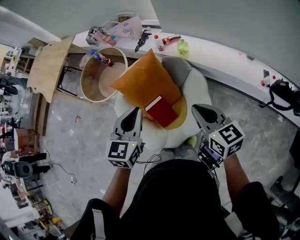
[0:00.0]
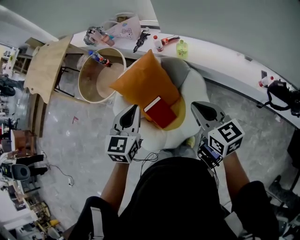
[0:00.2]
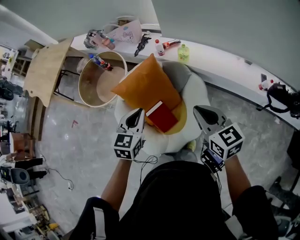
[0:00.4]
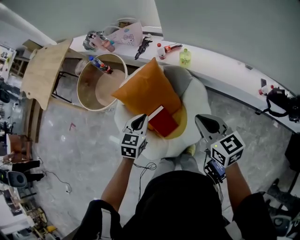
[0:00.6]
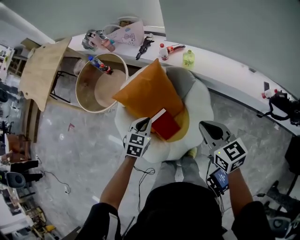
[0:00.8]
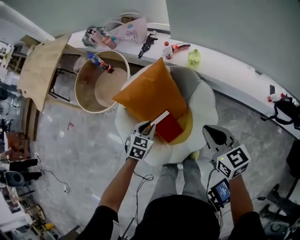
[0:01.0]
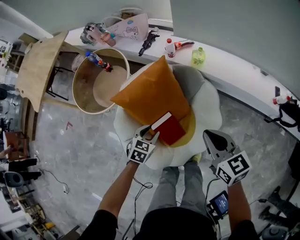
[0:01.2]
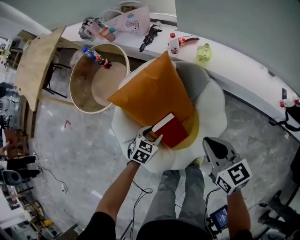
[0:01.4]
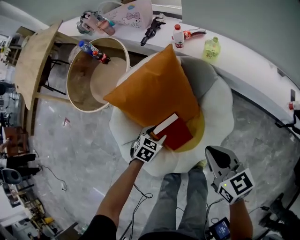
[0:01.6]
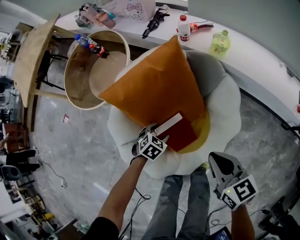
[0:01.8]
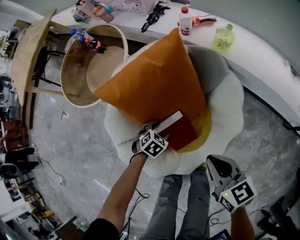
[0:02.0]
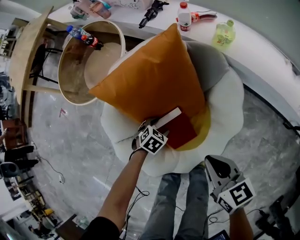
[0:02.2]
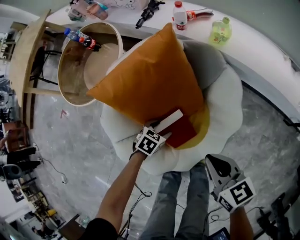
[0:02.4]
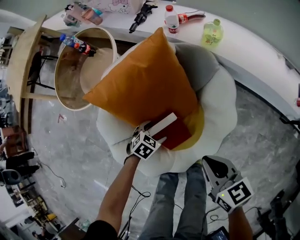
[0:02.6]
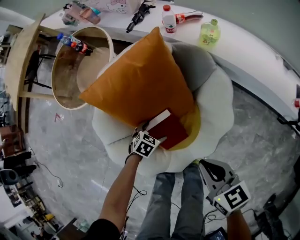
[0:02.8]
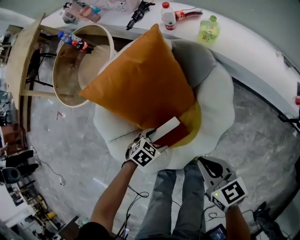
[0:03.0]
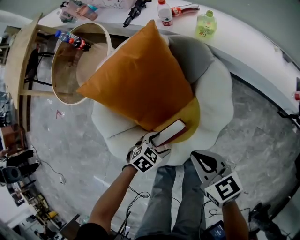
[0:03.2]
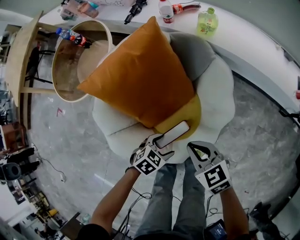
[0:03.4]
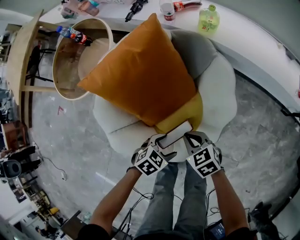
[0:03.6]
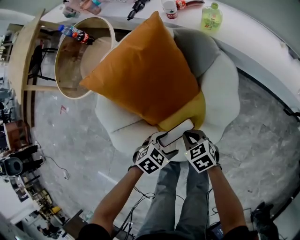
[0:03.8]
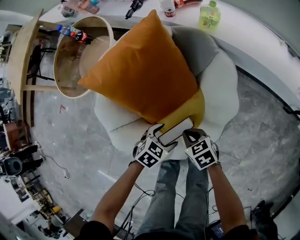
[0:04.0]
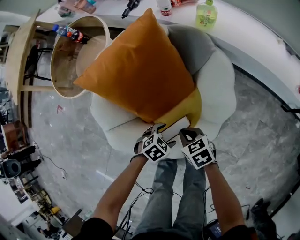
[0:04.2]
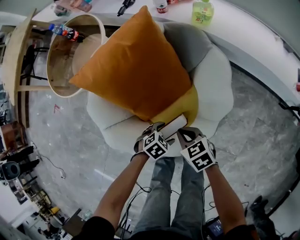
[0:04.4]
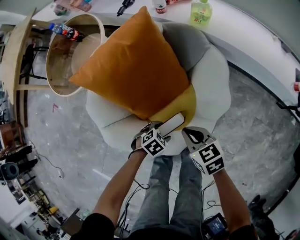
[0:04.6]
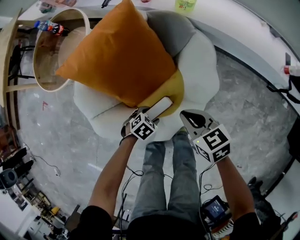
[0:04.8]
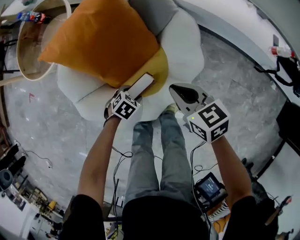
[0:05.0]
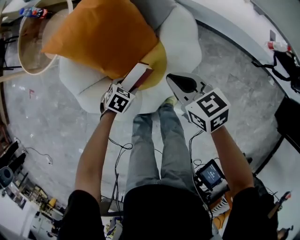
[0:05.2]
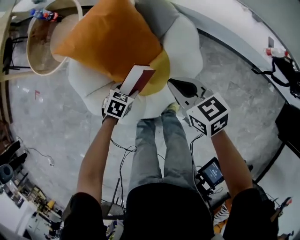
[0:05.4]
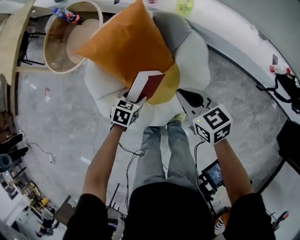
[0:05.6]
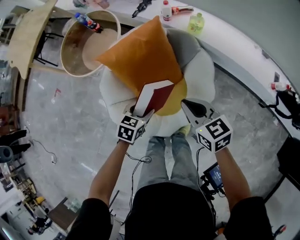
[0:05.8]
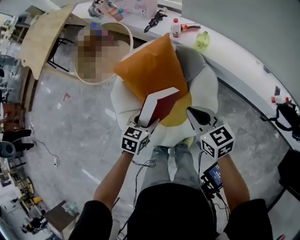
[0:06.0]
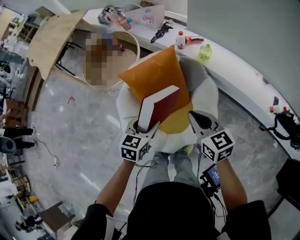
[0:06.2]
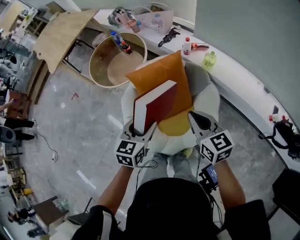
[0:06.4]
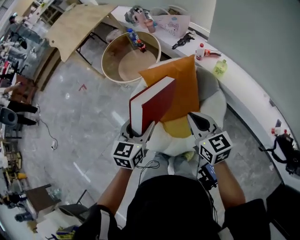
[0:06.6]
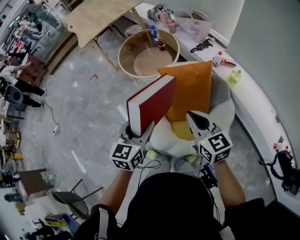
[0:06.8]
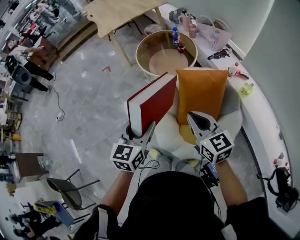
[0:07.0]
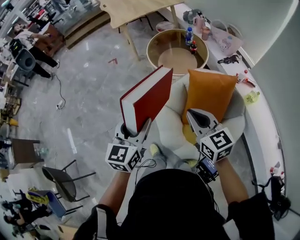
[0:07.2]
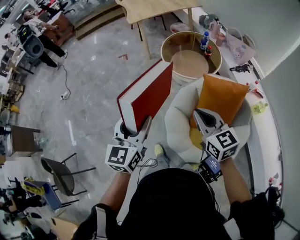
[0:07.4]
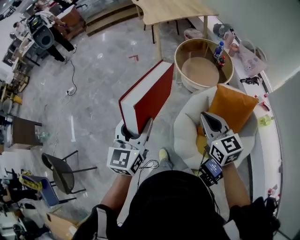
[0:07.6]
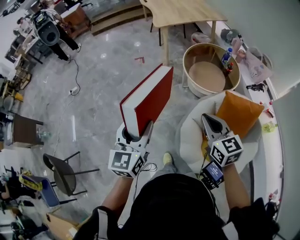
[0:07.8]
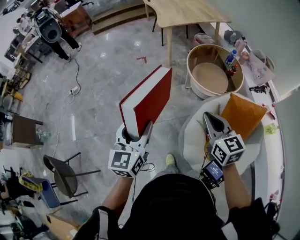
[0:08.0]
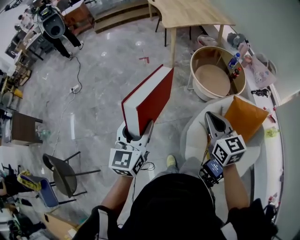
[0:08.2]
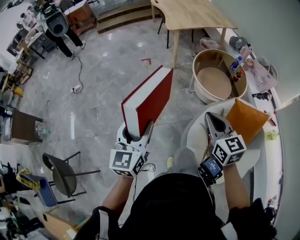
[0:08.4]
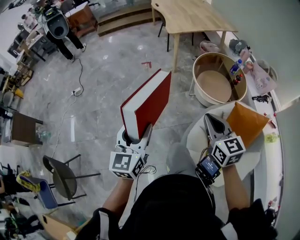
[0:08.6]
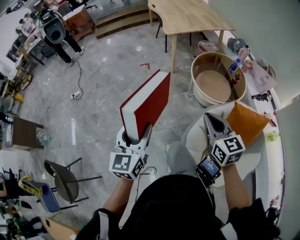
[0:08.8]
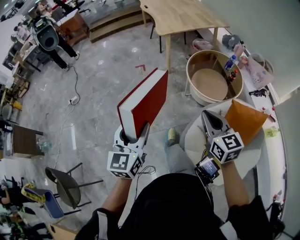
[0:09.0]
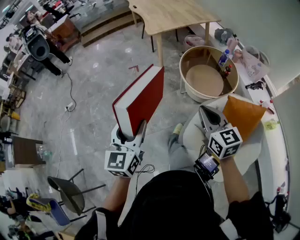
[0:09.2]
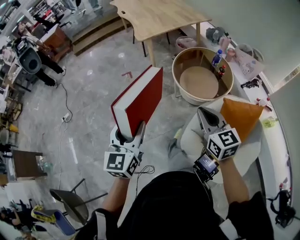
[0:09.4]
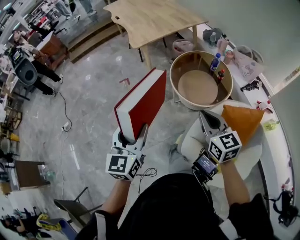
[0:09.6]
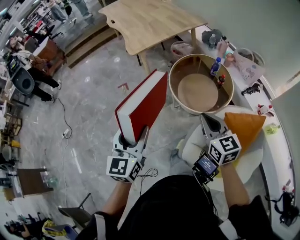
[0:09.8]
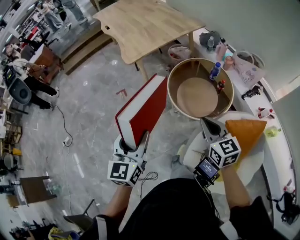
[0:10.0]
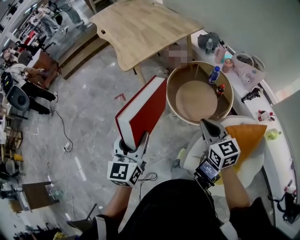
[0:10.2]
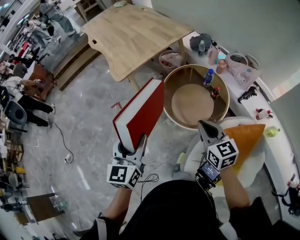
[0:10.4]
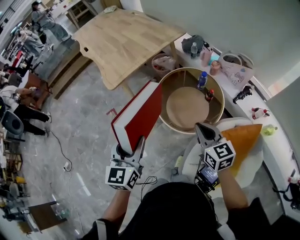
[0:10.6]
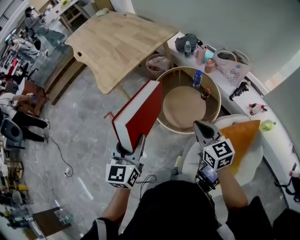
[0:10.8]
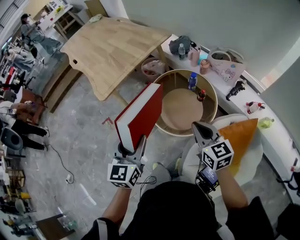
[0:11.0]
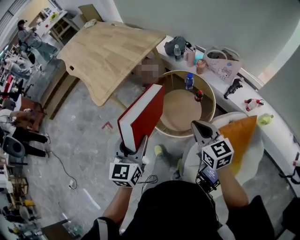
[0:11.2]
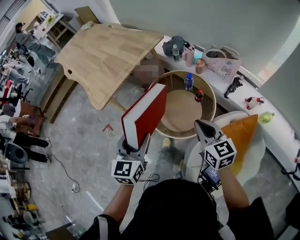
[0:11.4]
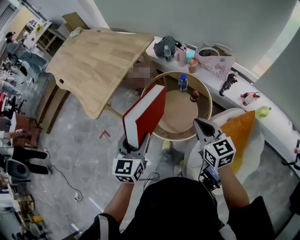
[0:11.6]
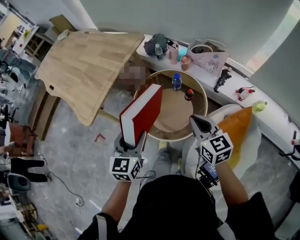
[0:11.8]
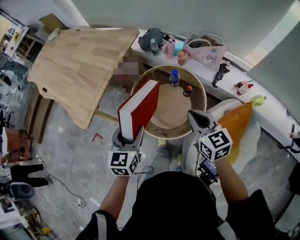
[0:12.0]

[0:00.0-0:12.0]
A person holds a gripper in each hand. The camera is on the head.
0.0 to 1.6 s: The right gripper goes approximately 25 cm downward and to the left, while the left gripper moves downward, approximately 50 cm, points its fingers roughly 40 degrees further downward, and opens.
1.6 to 3.0 s: The left gripper ends up roughly 10 cm from where it was, and opens, while the right gripper goes some 10 cm downward.
3.0 to 4.4 s: The left gripper ends up some 10 cm from where it was. The right gripper moves downward, approximately 15 cm.
4.4 to 6.0 s: Both grippers move upward, about 35 cm. The right gripper rotates roughly 20 degrees, while the left gripper changes its angle by roughly 40 degrees.
6.0 to 7.6 s: The left gripper shifts by some 50 cm, and tips its fingers upward by some 40 degrees; the right gripper moves approximately 40 cm, and changes its angle by some 40 degrees.
7.6 to 9.0 s: The right gripper goes some 15 cm forward and to the left, while the left gripper is displaced to the left and forward by about 15 cm.
9.0 to 10.4 s: The left gripper moves forward, some 35 cm; the right gripper heads forward and to the right, covering approximately 35 cm.
10.4 to 12.0 s: The left gripper travels forward and to the right by about 25 cm, and changes its angle by some 30 degrees. The right gripper goes roughly 15 cm forward and to the right, and rotates some 20 degrees.

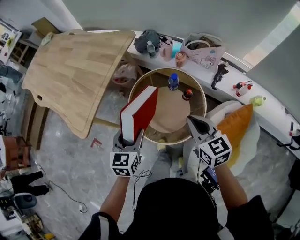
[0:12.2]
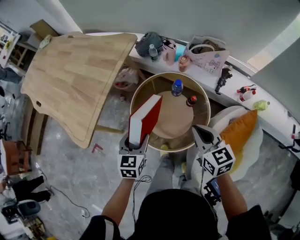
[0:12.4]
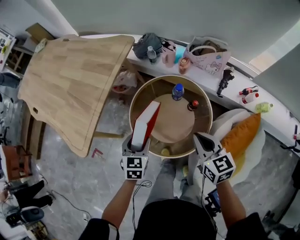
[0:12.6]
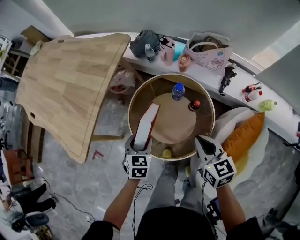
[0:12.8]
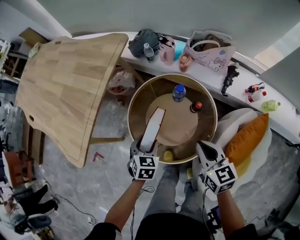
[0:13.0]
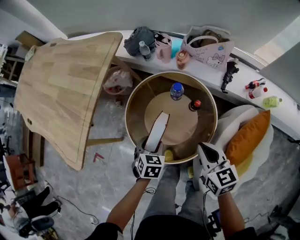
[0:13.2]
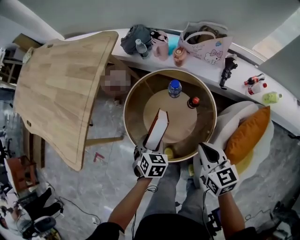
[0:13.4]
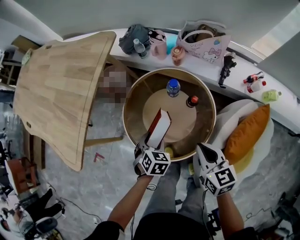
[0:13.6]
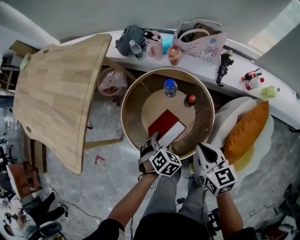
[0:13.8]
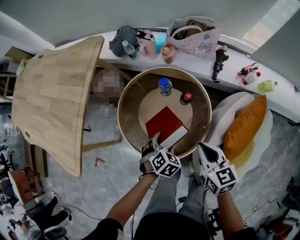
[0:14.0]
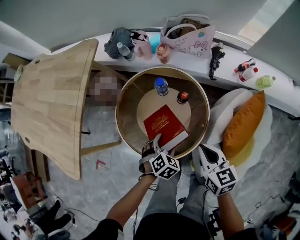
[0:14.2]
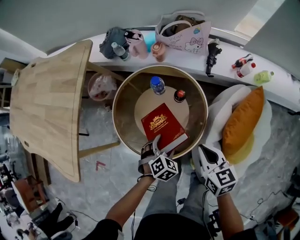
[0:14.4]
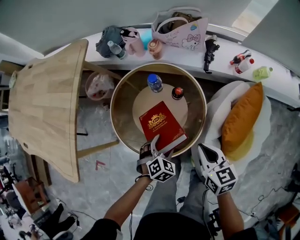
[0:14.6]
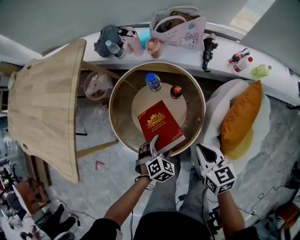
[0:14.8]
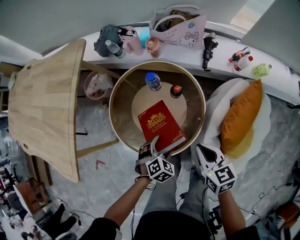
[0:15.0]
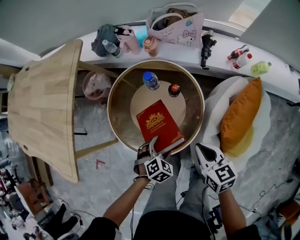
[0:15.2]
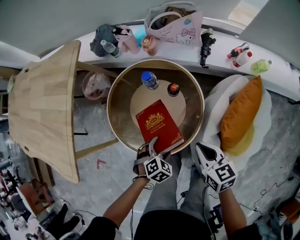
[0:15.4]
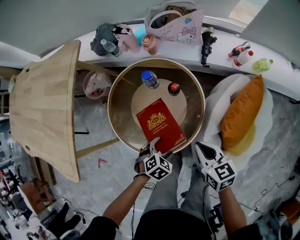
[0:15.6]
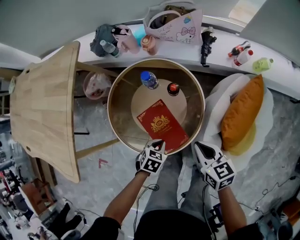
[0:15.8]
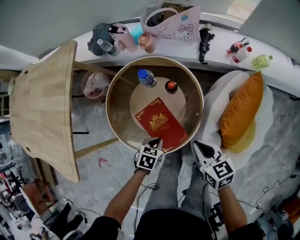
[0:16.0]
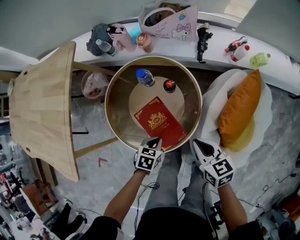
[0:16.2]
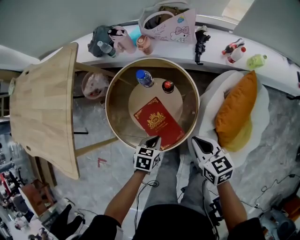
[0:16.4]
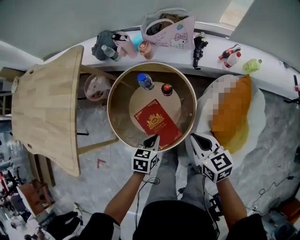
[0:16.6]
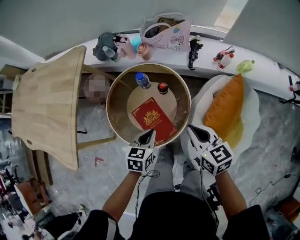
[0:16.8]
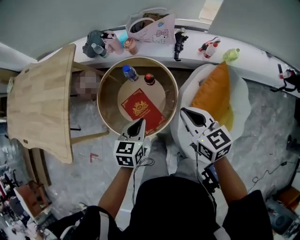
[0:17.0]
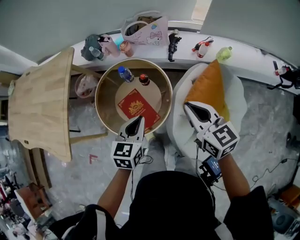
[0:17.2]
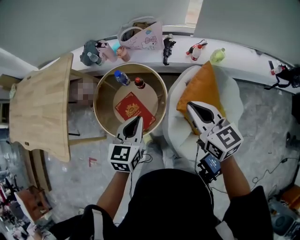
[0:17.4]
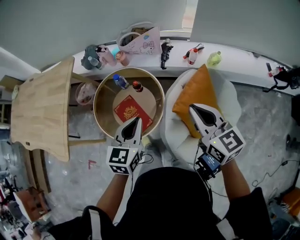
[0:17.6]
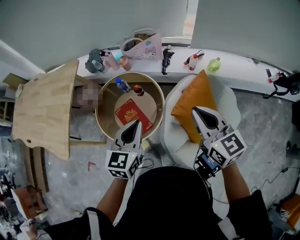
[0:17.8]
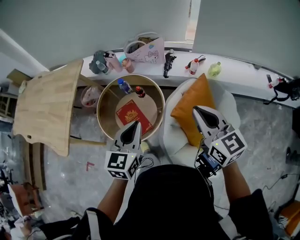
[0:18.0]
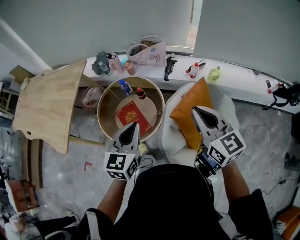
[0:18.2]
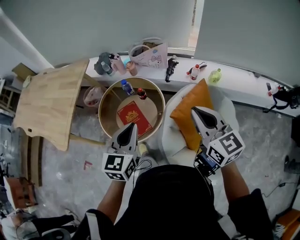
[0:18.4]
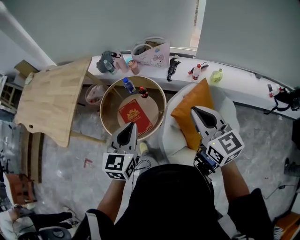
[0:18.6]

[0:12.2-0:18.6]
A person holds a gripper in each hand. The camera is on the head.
12.2 to 13.8 s: The right gripper shifts some 15 cm downward. Meanwhile the left gripper moves downward and to the right, roughly 30 cm, and points its fingers roughly 40 degrees further downward.
13.8 to 15.4 s: The left gripper goes some 10 cm backward and downward, and rotates some 20 degrees. The right gripper heads to the right, covering approximately 5 cm.
15.4 to 17.0 s: The two grippers go some 20 cm upward. The left gripper points its fingers some 30 degrees further upward, and closes its fingers.
17.0 to 18.6 s: The left gripper heads upward, backward and to the right, covering some 25 cm, and rotates some 30 degrees, while the right gripper travels upward, to the right and backward by some 25 cm, and turns by approximately 20 degrees.

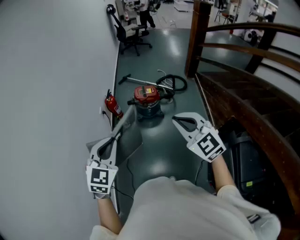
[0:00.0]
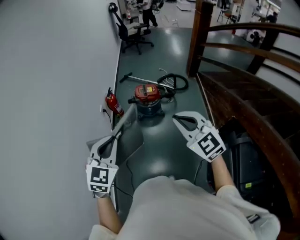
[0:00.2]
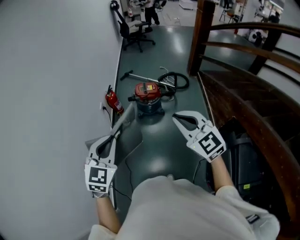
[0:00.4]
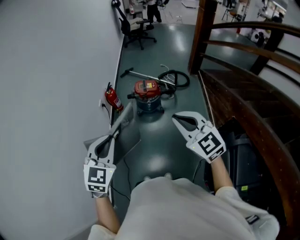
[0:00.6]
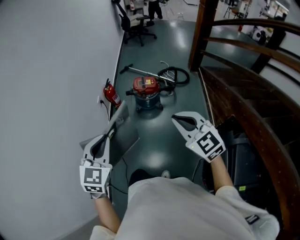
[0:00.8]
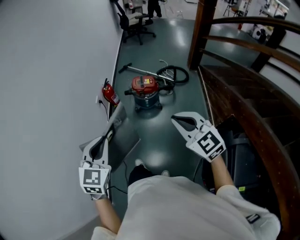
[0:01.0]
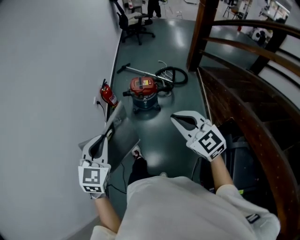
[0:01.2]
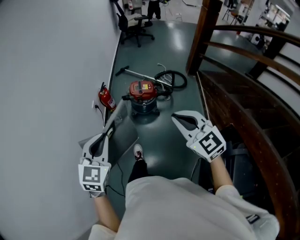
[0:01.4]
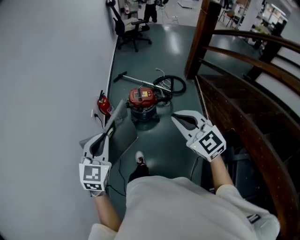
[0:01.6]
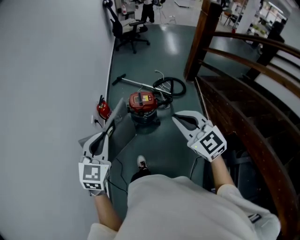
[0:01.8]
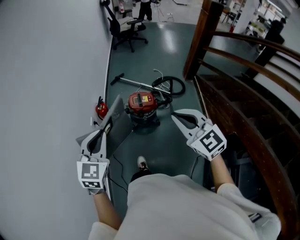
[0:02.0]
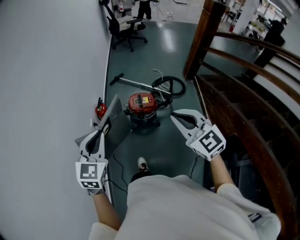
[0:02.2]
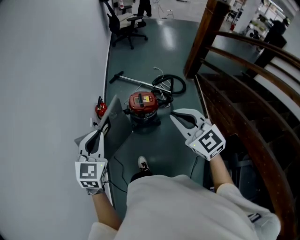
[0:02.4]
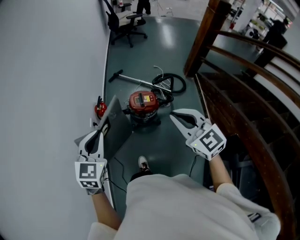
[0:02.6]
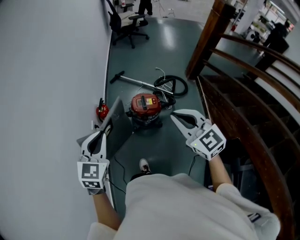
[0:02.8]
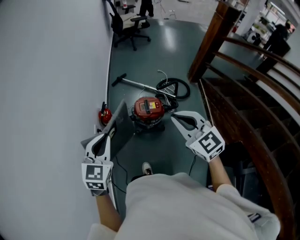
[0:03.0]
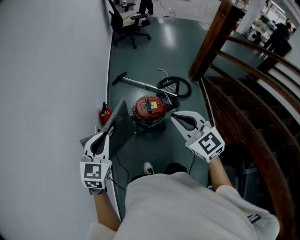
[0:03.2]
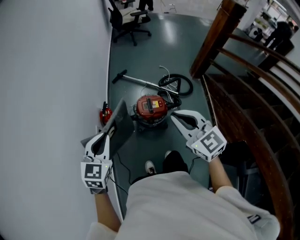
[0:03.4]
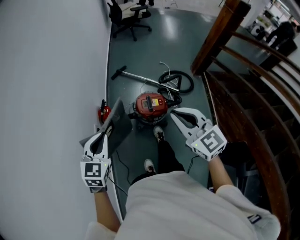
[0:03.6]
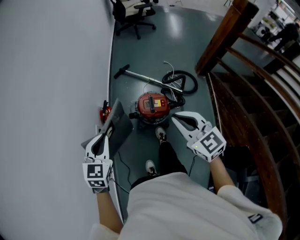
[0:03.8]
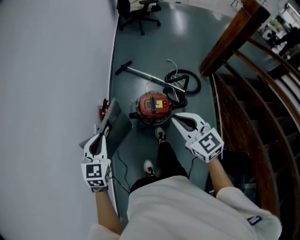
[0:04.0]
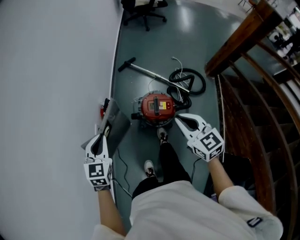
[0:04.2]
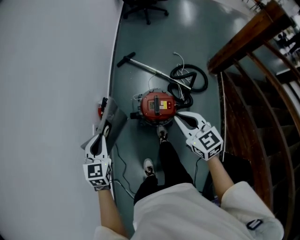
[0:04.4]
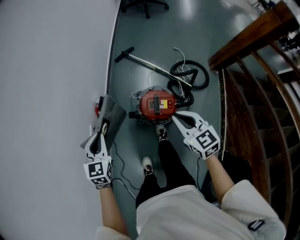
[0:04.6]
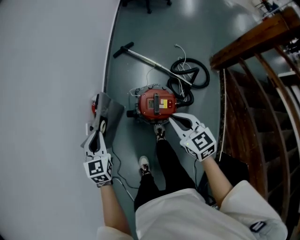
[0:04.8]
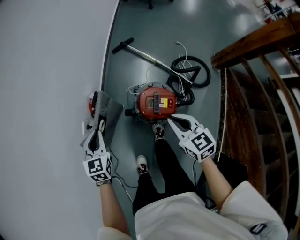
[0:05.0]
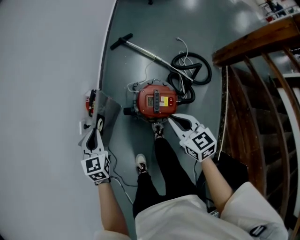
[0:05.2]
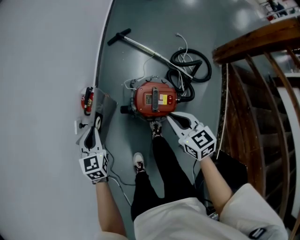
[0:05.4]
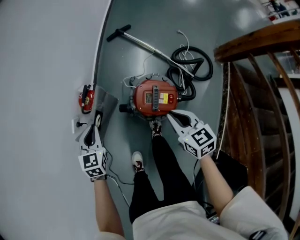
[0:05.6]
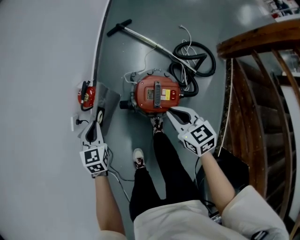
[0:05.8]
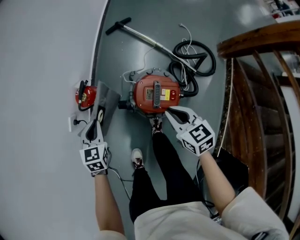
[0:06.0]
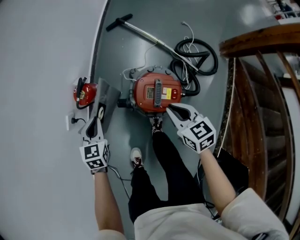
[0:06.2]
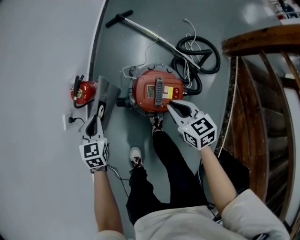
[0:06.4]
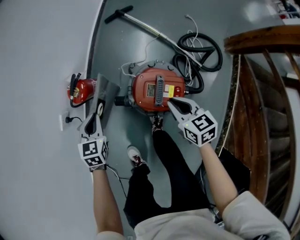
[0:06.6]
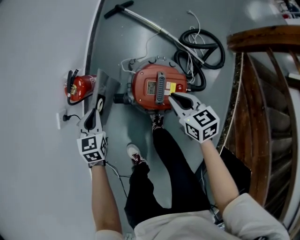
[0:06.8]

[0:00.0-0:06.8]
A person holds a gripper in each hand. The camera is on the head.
0.0 to 1.4 s: The right gripper travels forward and to the right by roughly 10 cm. Meanwhile the left gripper is displaced forward by some 5 cm.
1.4 to 2.8 s: The two grippers go about 25 cm forward.
2.8 to 4.0 s: The two grippers go about 20 cm forward and downward.
4.0 to 5.4 s: Both grippers travel together downward and forward, approximately 30 cm. The right gripper turns by approximately 20 degrees. Meanwhile the left gripper changes its angle by approximately 20 degrees.
5.4 to 6.8 s: Both grippers travel together downward, approximately 20 cm.
